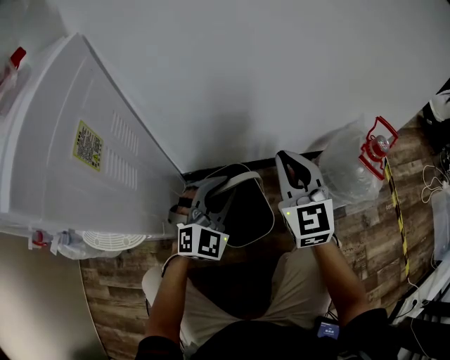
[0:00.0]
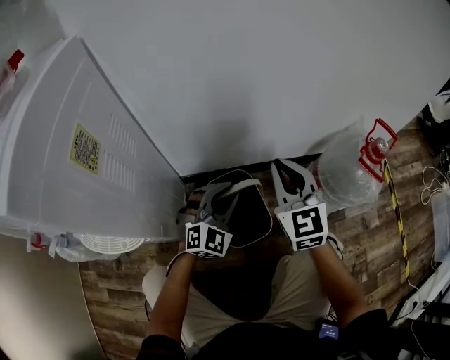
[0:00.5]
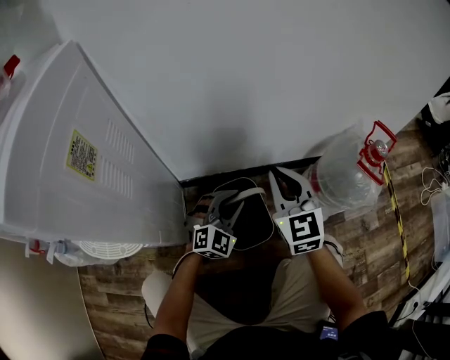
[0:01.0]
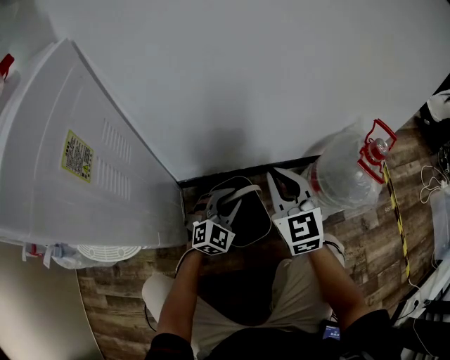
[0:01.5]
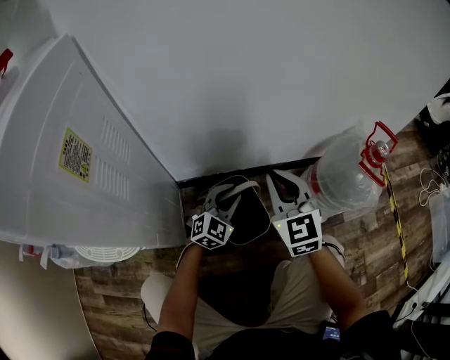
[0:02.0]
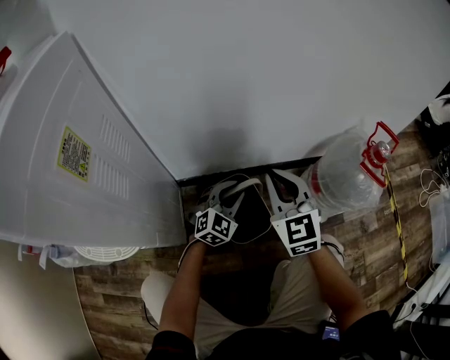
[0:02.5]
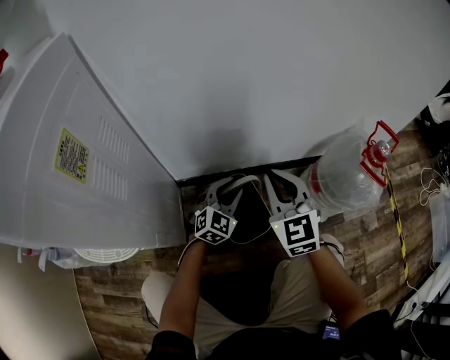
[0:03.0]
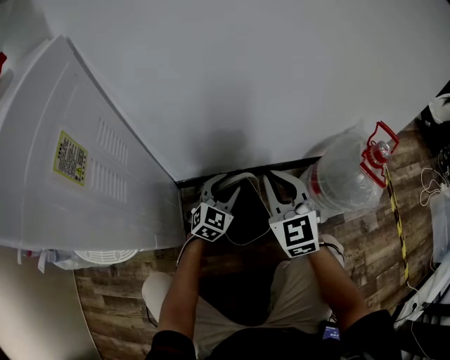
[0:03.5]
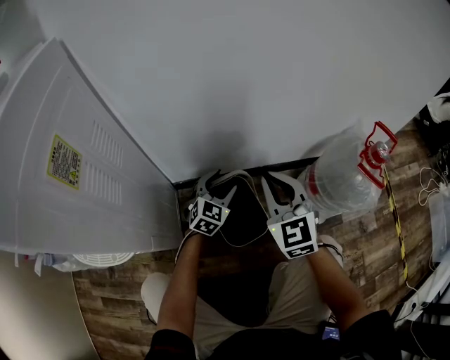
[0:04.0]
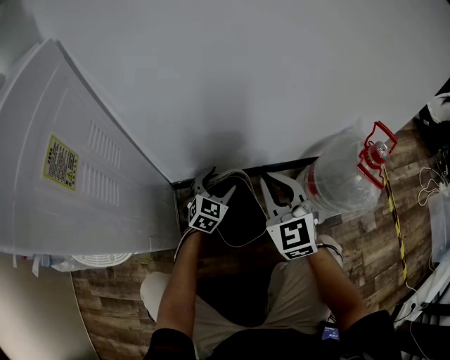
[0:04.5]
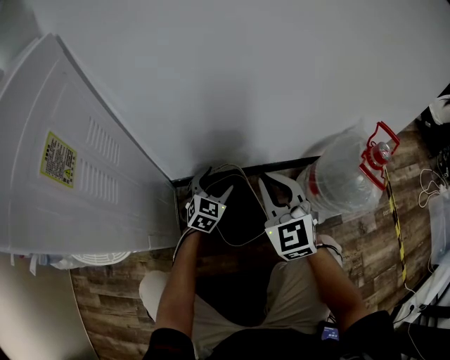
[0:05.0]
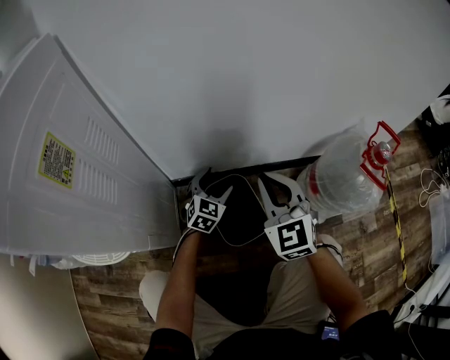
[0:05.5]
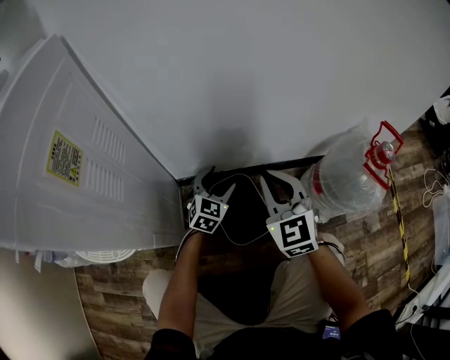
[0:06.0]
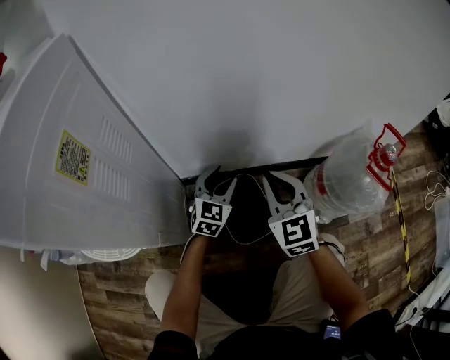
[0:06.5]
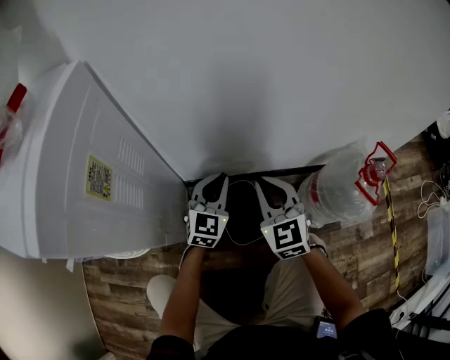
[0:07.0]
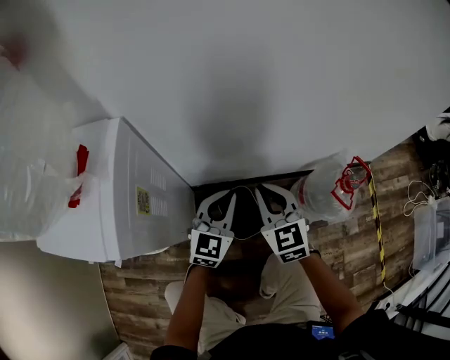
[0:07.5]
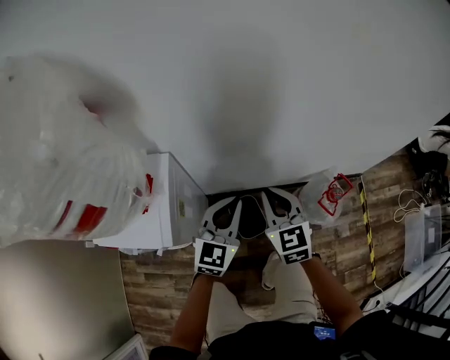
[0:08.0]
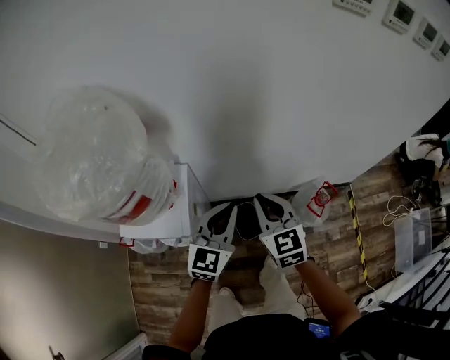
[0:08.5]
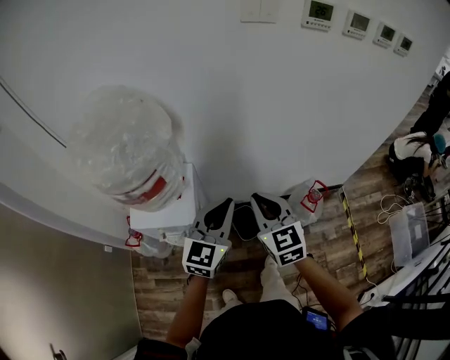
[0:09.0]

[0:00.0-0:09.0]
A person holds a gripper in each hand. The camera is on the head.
0:00.0 to 0:02.0: The left gripper moves downward, approximately 15 cm. The right gripper moves downward, some 5 cm.
0:02.0 to 0:04.5: The left gripper travels forward by about 5 cm, and opens.
0:04.5 to 0:07.0: The right gripper moves about 5 cm; the left gripper travels upward by approximately 15 cm, and closes.
0:07.0 to 0:09.0: Both grippers move upward, roughly 60 cm.

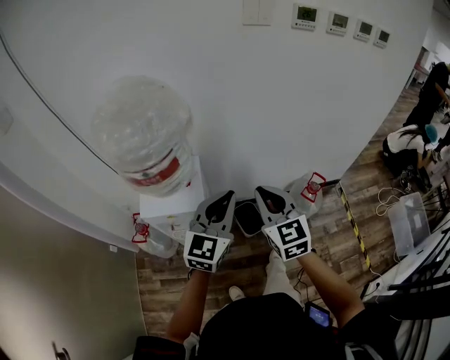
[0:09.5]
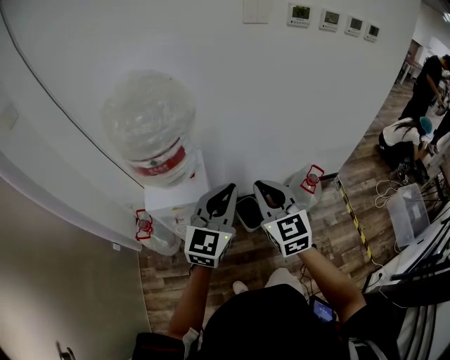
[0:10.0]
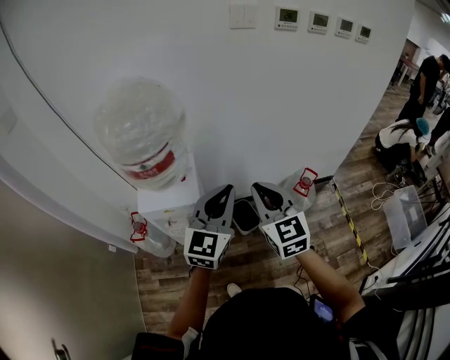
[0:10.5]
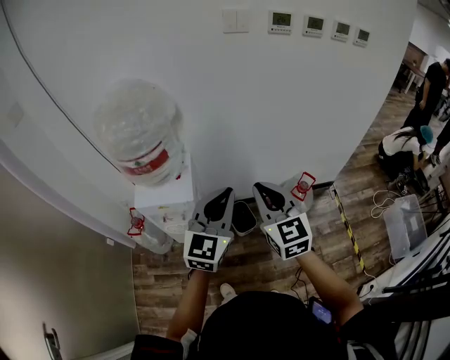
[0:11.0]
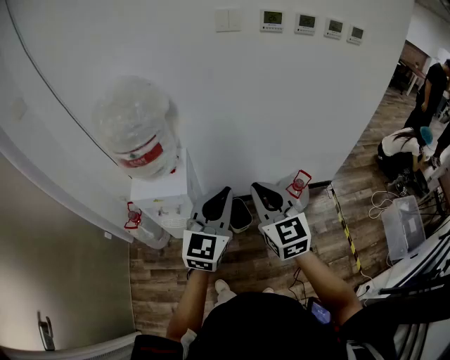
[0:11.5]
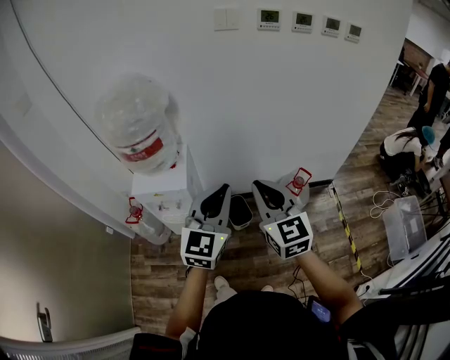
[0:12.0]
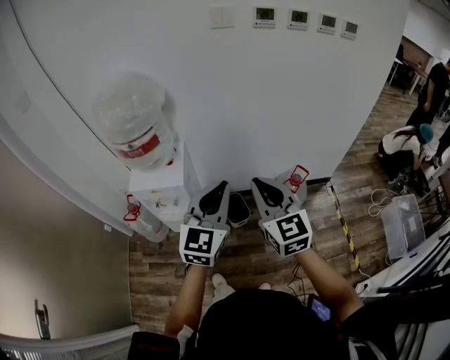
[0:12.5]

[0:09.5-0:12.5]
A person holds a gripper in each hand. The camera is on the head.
0:09.5 to 0:11.0: Both grippers travel together to the right and backward, approximately 10 cm.
0:11.0 to 0:12.5: The left gripper heads backward, covering some 5 cm. The right gripper heads backward and to the right, covering some 10 cm.

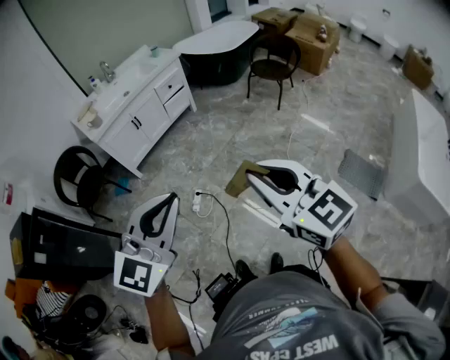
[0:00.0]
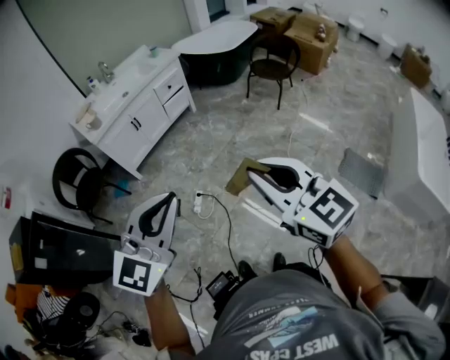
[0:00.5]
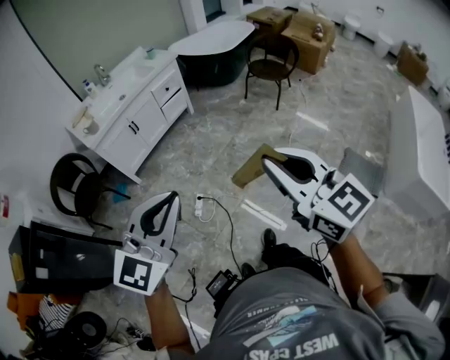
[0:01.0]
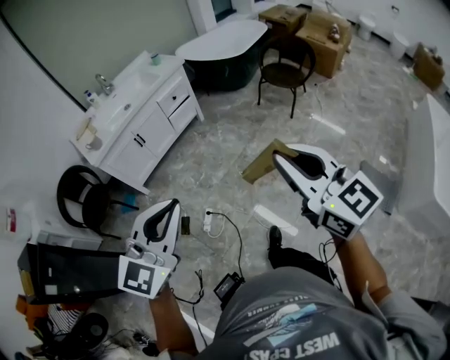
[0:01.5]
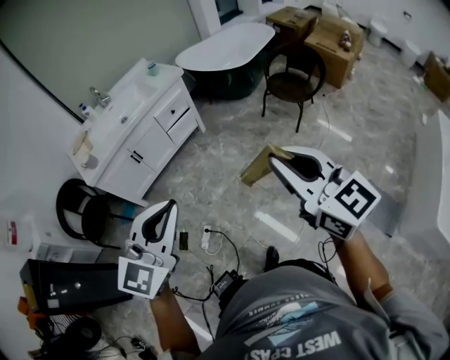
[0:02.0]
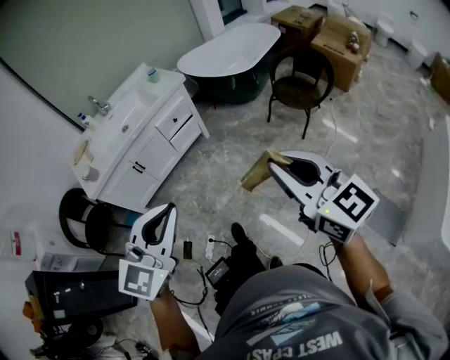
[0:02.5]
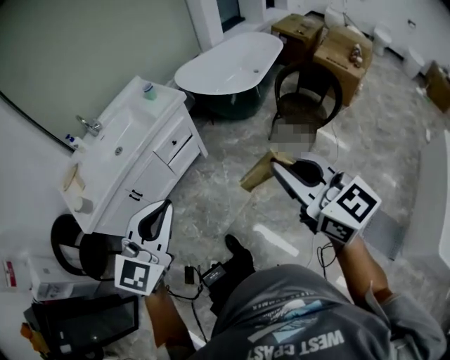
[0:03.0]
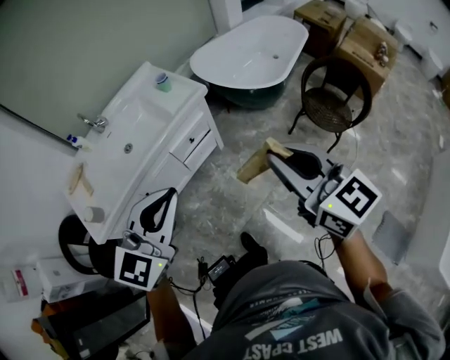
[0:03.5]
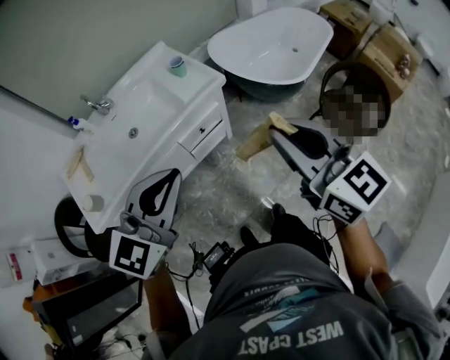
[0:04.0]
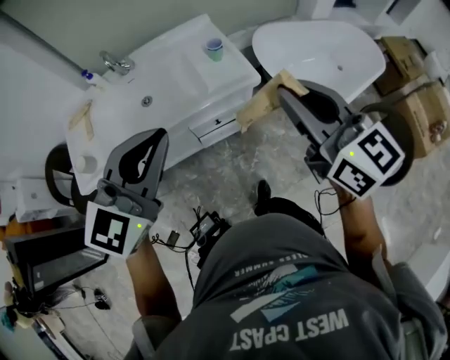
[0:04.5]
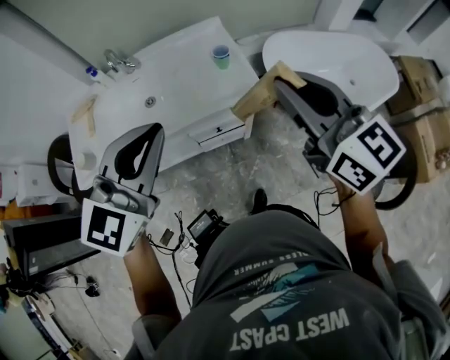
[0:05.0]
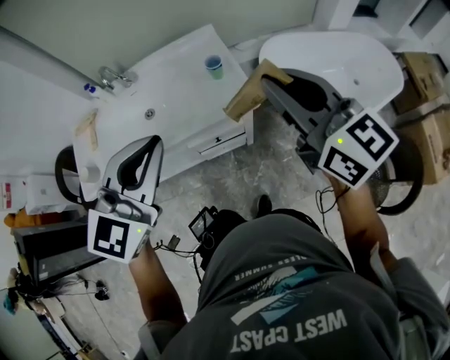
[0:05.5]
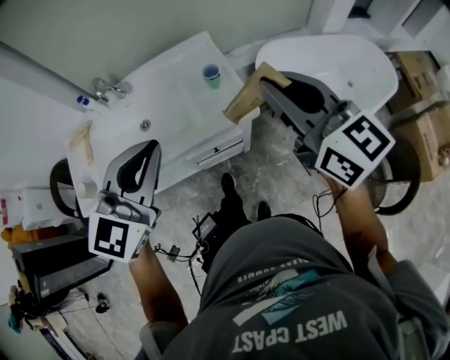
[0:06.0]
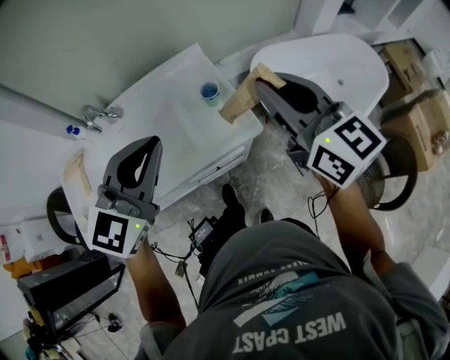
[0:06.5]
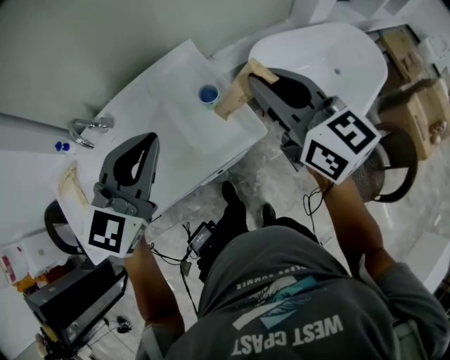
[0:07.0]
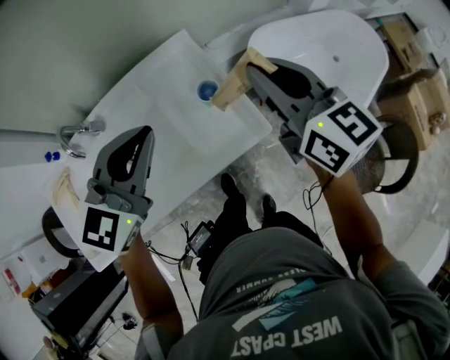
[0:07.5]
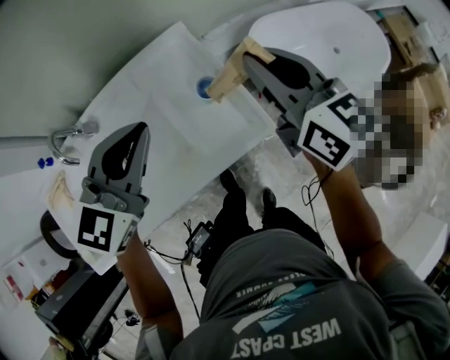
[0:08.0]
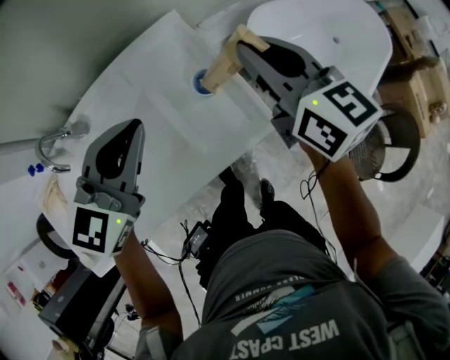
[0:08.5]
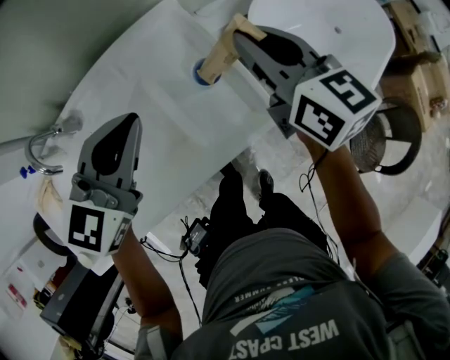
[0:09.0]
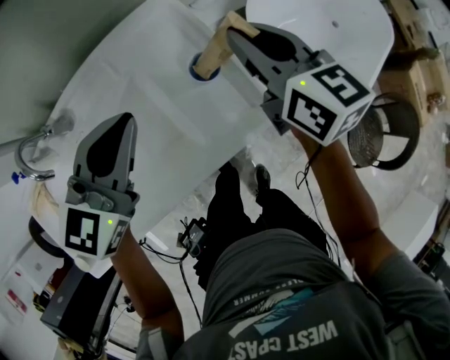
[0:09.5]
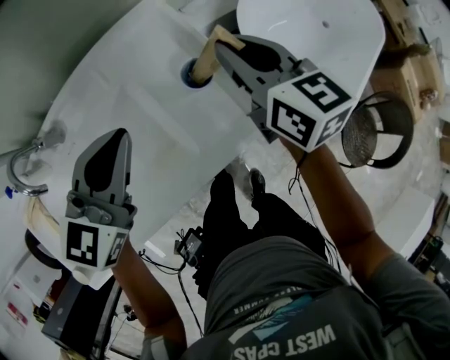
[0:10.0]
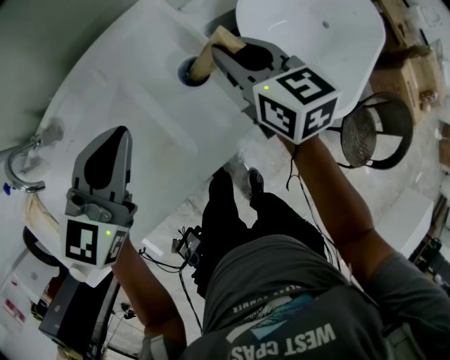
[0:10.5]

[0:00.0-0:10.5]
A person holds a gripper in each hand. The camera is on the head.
0:00.0 to 0:02.0: The grippers both shift forward by about 35 cm.
0:02.0 to 0:04.0: Both grippers are carried forward, about 60 cm.
0:04.0 to 0:06.5: The grippers both shift forward by approximately 35 cm.
0:06.5 to 0:08.5: The two grippers go some 20 cm forward and downward.
0:08.5 to 0:10.5: The left gripper heads downward, covering approximately 5 cm; the right gripper heads downward, covering some 10 cm.

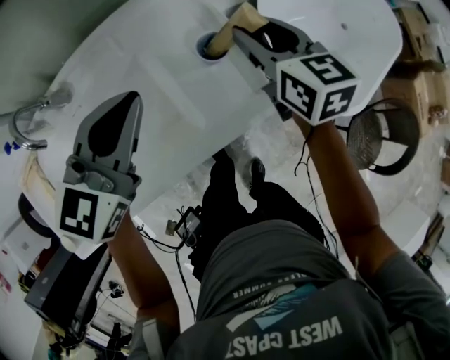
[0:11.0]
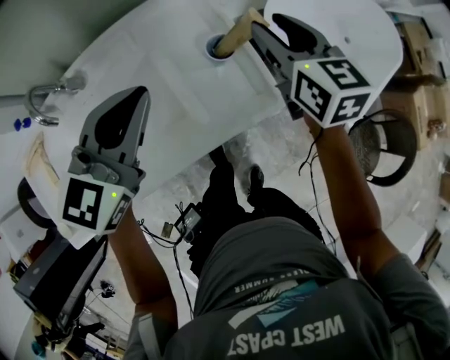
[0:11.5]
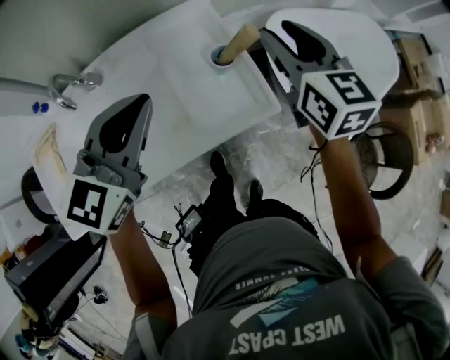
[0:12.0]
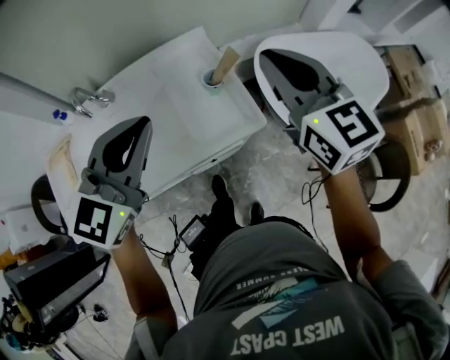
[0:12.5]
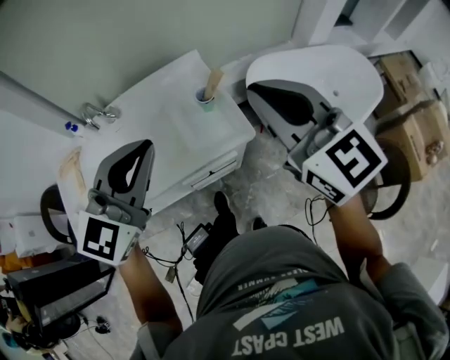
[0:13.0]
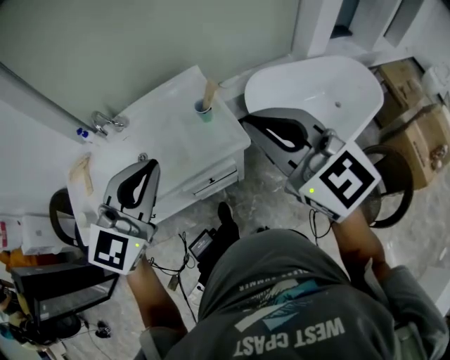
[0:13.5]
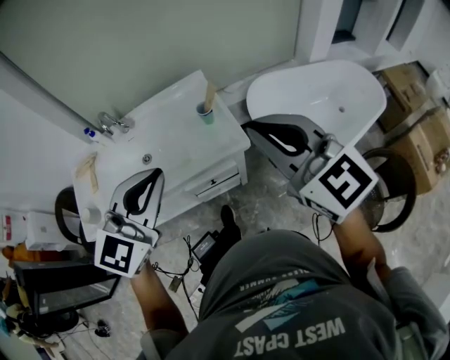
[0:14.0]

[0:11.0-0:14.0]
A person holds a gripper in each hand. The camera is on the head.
0:11.0 to 0:12.5: Both grippers move upward and backward, about 25 cm. The right gripper rotates about 20 degrees, and closes.
0:12.5 to 0:14.0: The right gripper travels backward by about 20 cm. The left gripper goes roughly 20 cm backward and to the right.

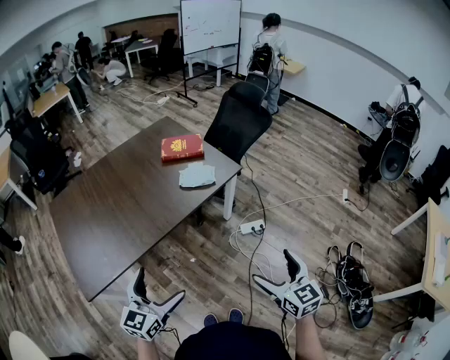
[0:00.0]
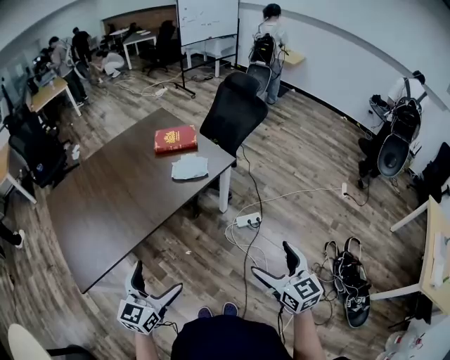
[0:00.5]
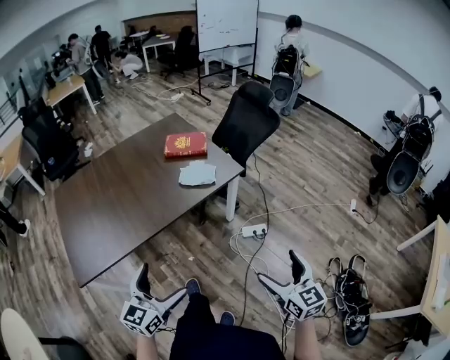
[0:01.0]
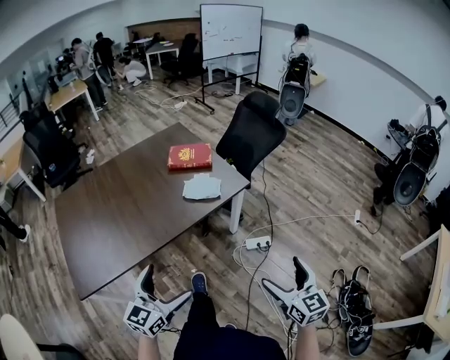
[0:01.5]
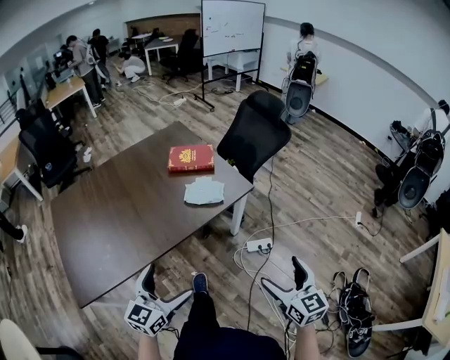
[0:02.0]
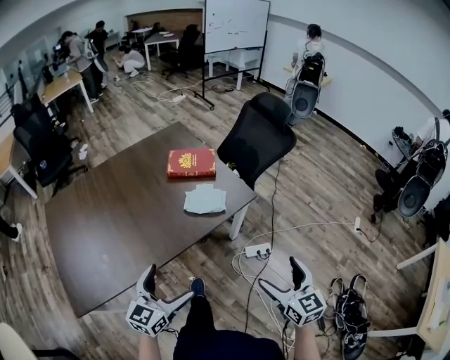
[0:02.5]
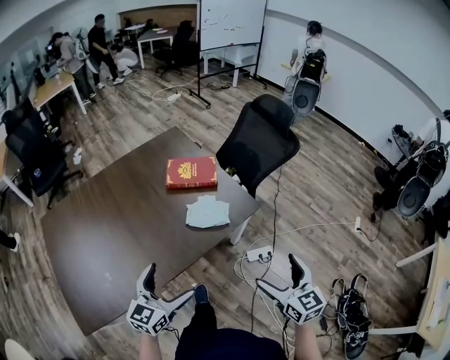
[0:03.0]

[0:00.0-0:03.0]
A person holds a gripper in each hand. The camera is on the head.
0:00.0 to 0:01.5: Both grippers travel together forward and to the right, roughly 10 cm.
0:01.5 to 0:03.0: The right gripper travels forward and to the left by roughly 25 cm. Meanwhile the left gripper travels forward by some 20 cm.
